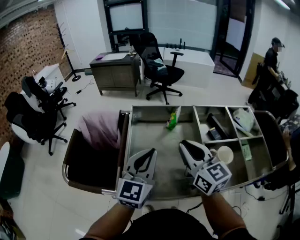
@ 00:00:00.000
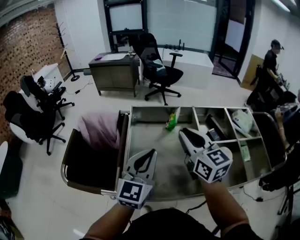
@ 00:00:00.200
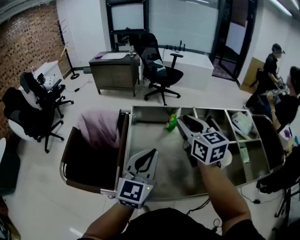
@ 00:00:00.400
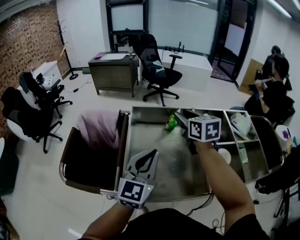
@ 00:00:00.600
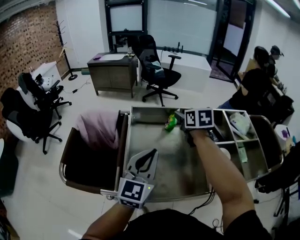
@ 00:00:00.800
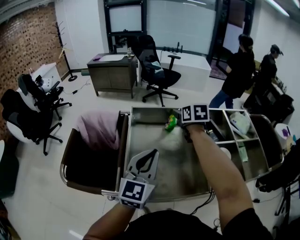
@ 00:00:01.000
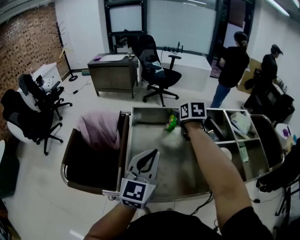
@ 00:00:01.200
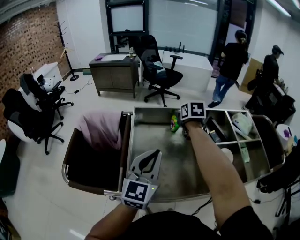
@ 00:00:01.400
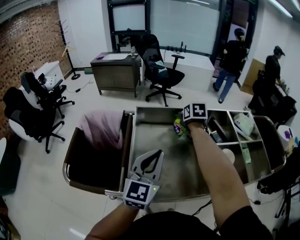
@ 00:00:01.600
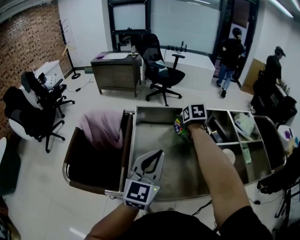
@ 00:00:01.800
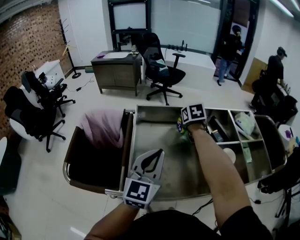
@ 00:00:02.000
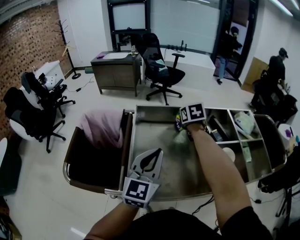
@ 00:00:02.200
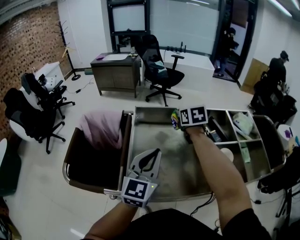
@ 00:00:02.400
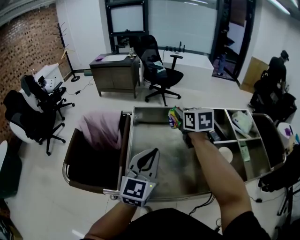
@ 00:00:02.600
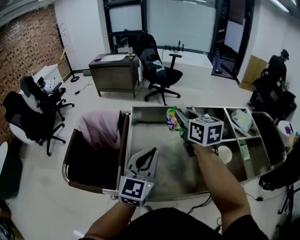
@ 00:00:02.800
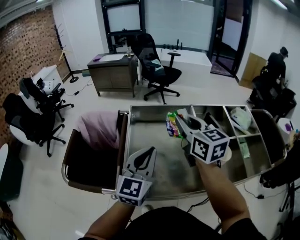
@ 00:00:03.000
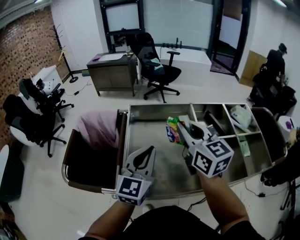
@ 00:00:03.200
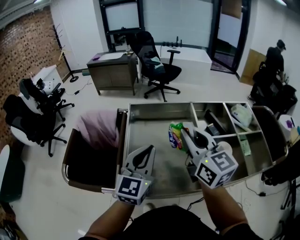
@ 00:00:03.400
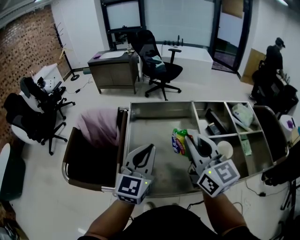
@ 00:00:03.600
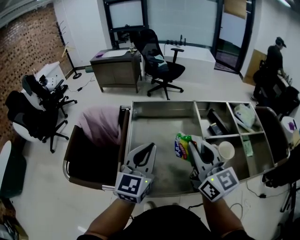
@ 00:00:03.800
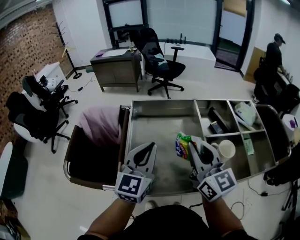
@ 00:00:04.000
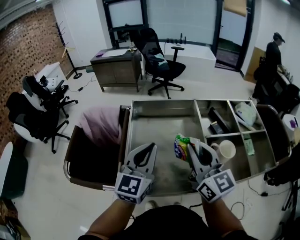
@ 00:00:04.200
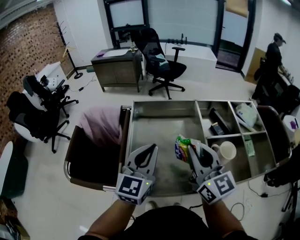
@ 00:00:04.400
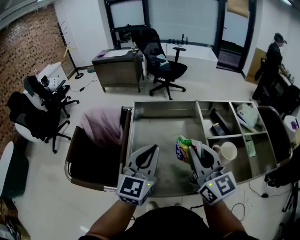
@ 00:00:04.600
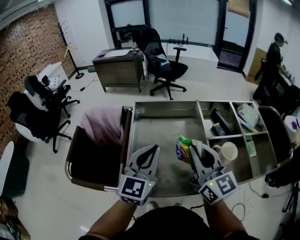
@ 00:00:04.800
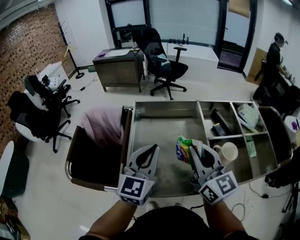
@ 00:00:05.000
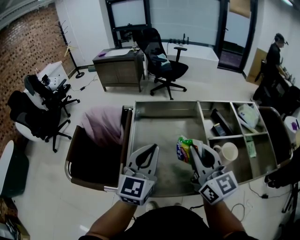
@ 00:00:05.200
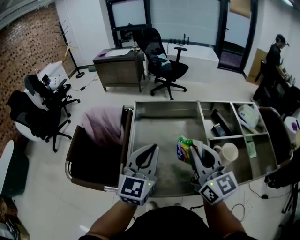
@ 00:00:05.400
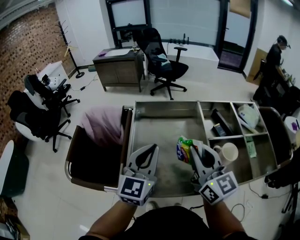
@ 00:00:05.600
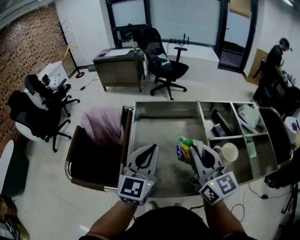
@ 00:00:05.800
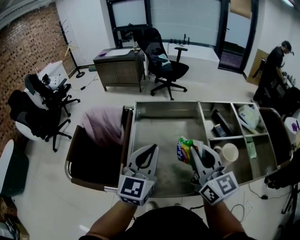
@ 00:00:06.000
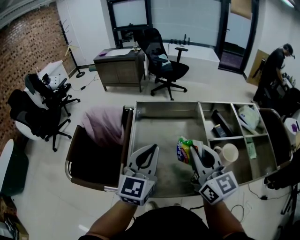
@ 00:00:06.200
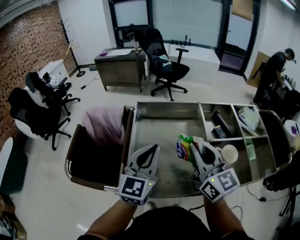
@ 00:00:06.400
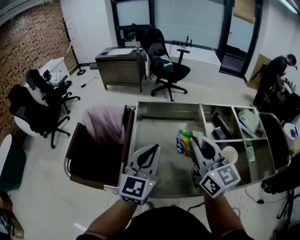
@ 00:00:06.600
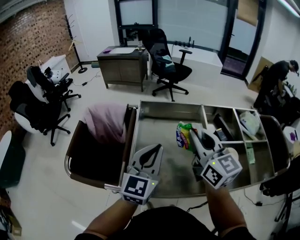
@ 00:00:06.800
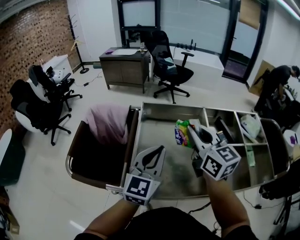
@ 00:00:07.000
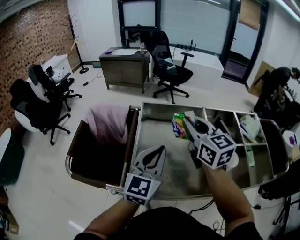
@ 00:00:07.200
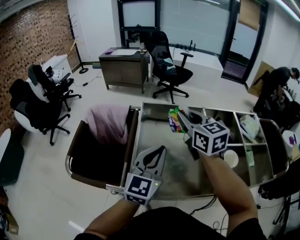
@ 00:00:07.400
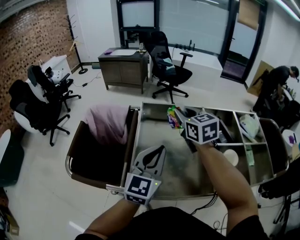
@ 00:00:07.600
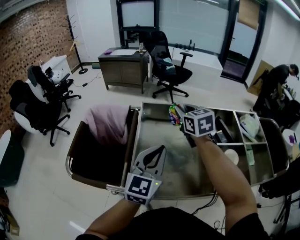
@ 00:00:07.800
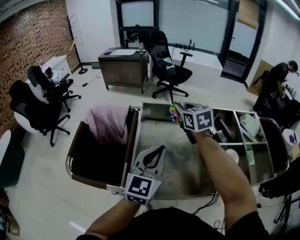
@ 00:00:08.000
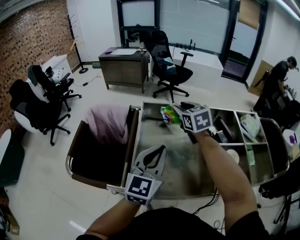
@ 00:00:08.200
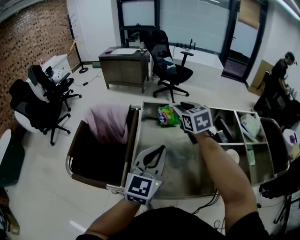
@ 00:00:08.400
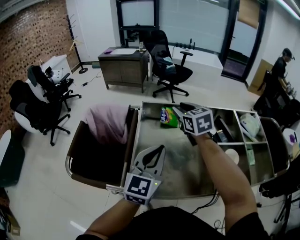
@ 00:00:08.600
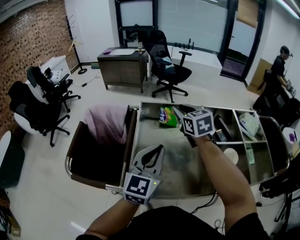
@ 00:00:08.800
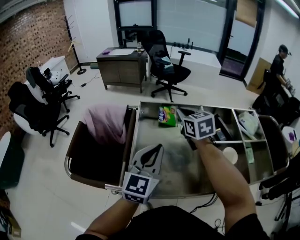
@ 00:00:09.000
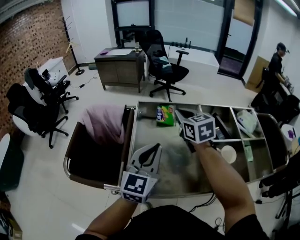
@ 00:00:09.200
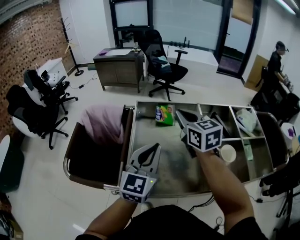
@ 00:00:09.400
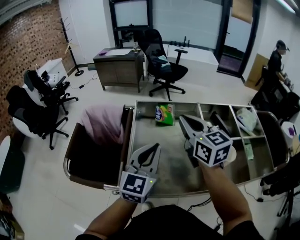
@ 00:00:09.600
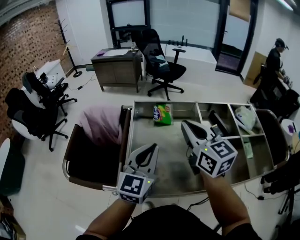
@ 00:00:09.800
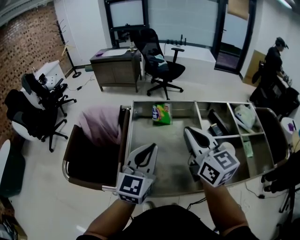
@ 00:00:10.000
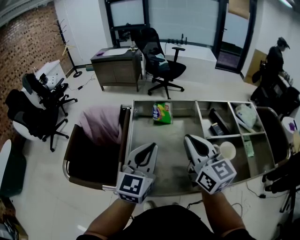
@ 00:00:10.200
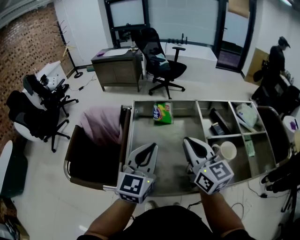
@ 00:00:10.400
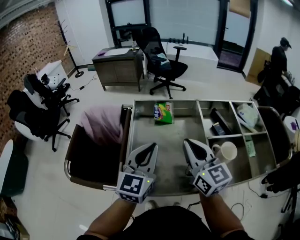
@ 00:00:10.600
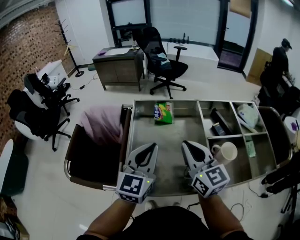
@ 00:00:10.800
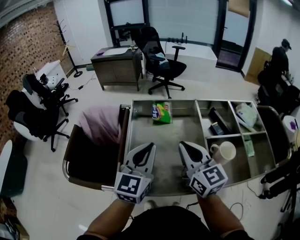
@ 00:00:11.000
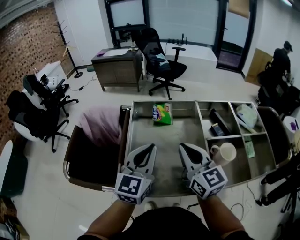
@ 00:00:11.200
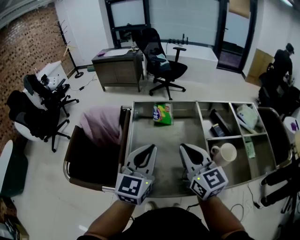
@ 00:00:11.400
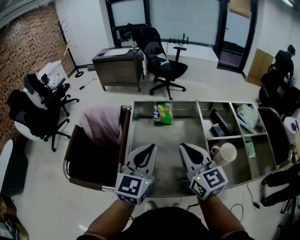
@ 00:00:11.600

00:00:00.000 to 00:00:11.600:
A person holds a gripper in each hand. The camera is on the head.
00:00:00.000 to 00:00:01.400: The right gripper heads forward, covering about 25 cm, points its fingers approximately 40 degrees further downward, and opens up.
00:00:01.400 to 00:00:02.800: The right gripper goes roughly 15 cm upward and backward, swivels some 30 degrees, and closes up.
00:00:02.800 to 00:00:04.400: The right gripper travels backward by roughly 15 cm.
00:00:04.400 to 00:00:05.800: Neither gripper changes place.
00:00:05.800 to 00:00:07.200: The right gripper goes about 10 cm forward.
00:00:07.200 to 00:00:08.800: The right gripper goes roughly 10 cm forward and downward.
00:00:08.800 to 00:00:10.200: The right gripper heads backward, covering some 20 cm, swivels about 20 degrees, and closes.
00:00:10.200 to 00:00:11.600: The grippers stay close to where they were, moving slightly.

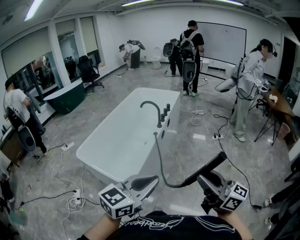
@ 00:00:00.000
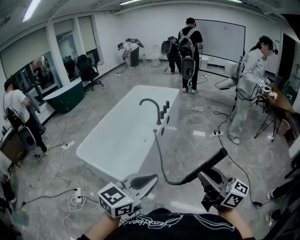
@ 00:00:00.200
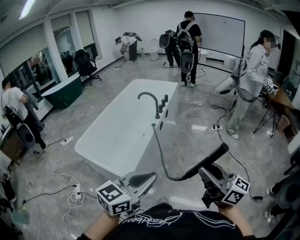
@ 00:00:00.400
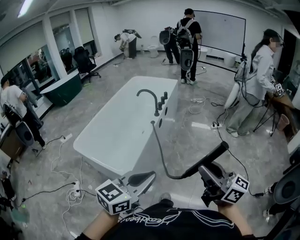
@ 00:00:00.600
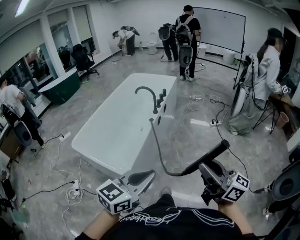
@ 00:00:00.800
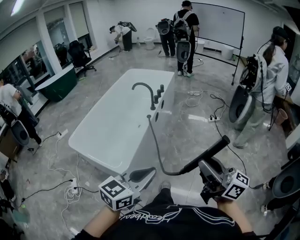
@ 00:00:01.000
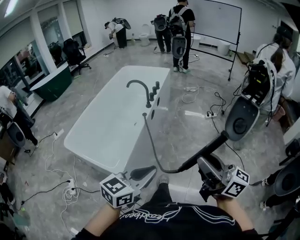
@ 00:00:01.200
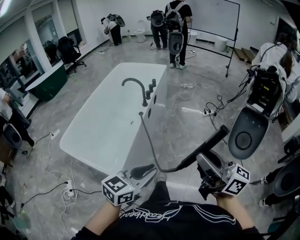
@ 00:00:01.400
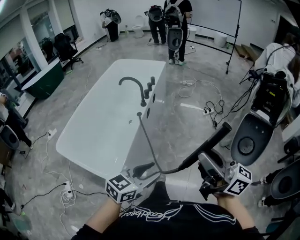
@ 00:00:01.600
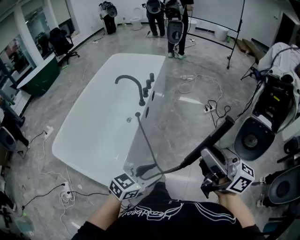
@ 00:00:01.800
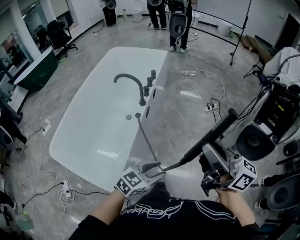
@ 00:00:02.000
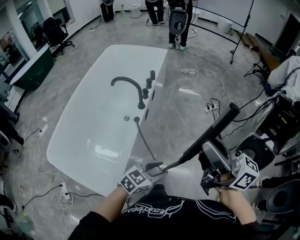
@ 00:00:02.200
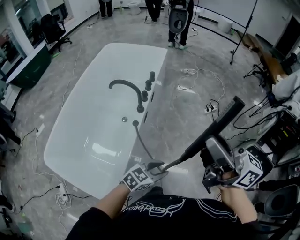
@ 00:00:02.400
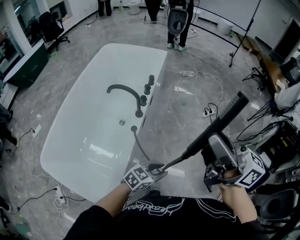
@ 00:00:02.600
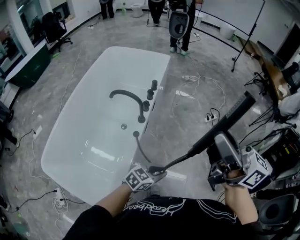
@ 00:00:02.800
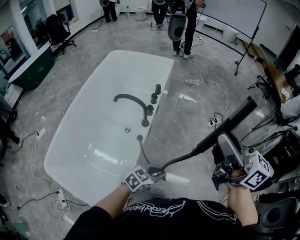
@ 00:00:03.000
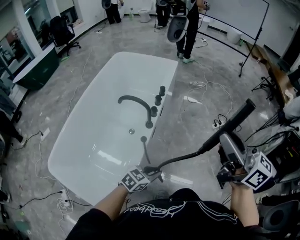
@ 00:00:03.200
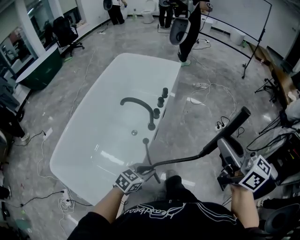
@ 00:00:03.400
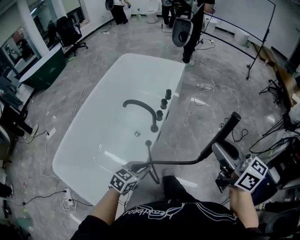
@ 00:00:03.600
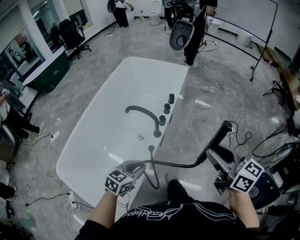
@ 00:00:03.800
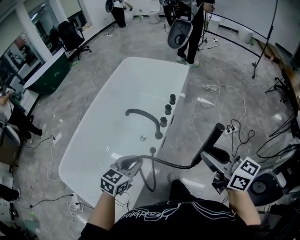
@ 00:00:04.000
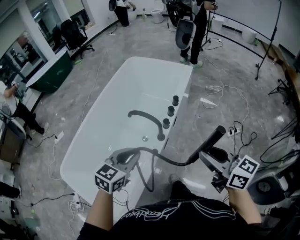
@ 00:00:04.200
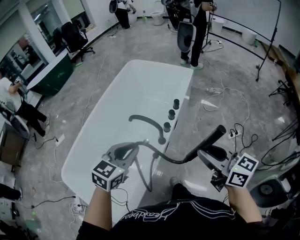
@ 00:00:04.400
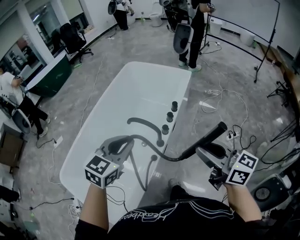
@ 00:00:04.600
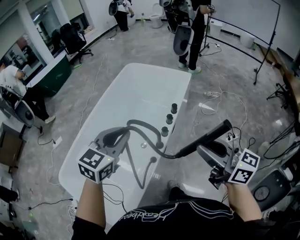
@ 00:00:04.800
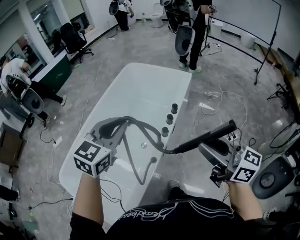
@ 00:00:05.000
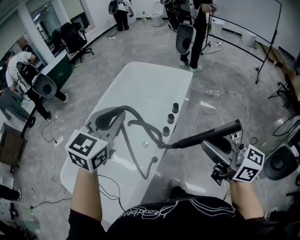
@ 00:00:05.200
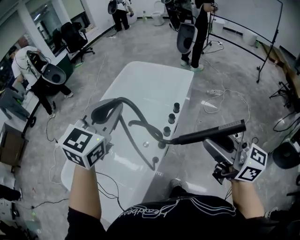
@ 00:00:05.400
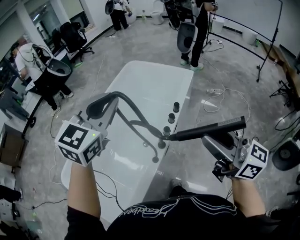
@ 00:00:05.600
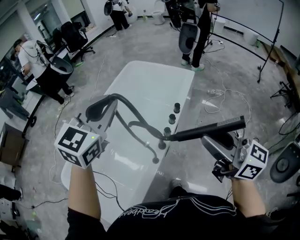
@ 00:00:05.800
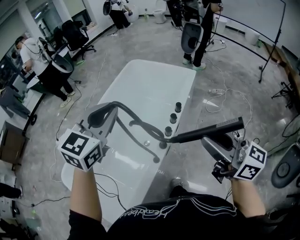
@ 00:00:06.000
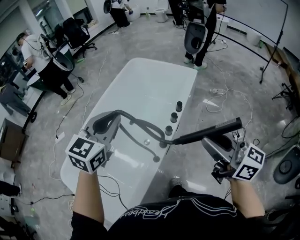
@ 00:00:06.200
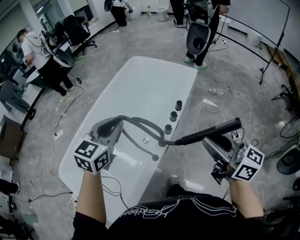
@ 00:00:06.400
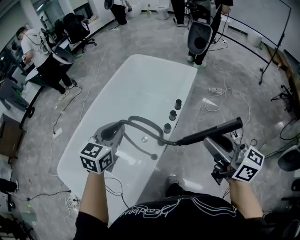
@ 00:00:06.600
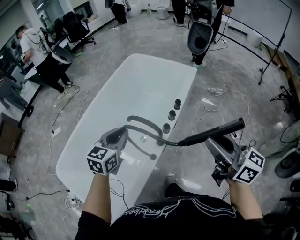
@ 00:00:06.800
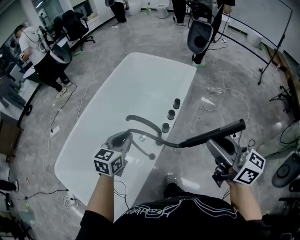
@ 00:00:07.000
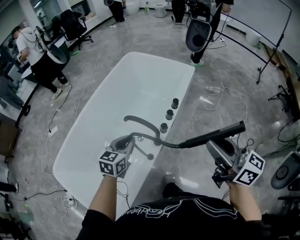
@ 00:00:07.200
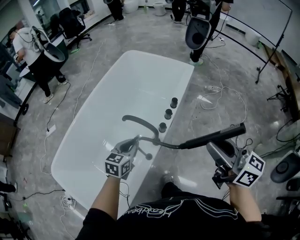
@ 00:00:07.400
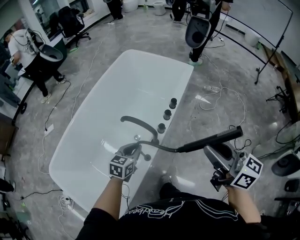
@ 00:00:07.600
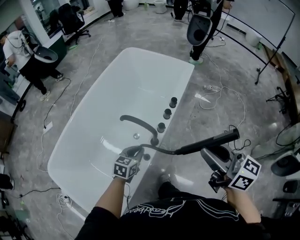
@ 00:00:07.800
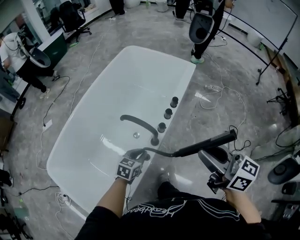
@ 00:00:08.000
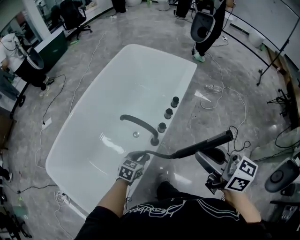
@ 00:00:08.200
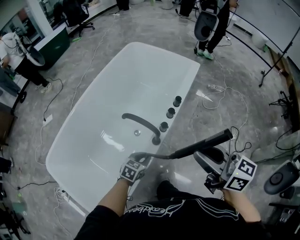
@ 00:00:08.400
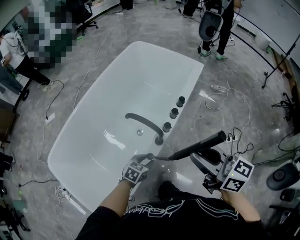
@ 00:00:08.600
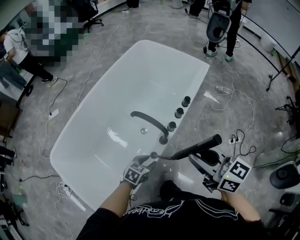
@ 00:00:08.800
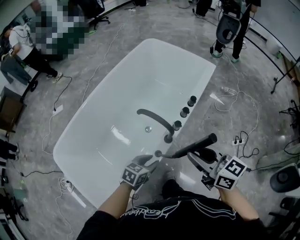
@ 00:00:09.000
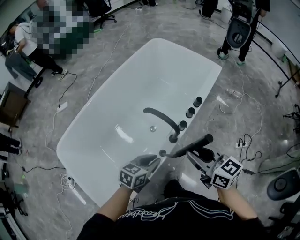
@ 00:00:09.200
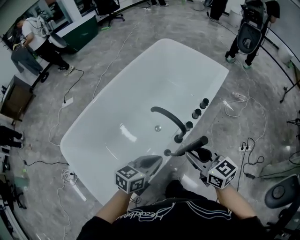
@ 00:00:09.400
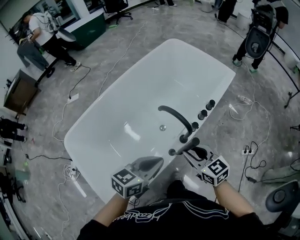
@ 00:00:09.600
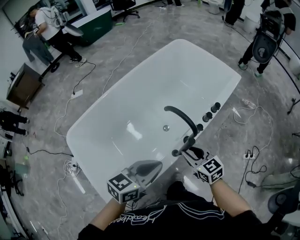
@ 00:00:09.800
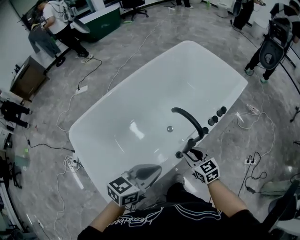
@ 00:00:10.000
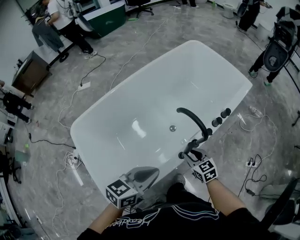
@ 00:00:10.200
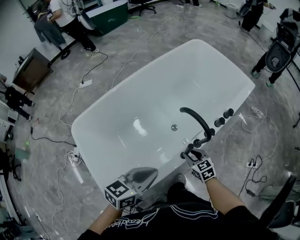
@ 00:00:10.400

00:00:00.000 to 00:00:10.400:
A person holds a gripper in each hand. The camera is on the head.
00:00:00.000 to 00:00:01.400: The right gripper heads forward, covering roughly 10 cm, while the left gripper is displaced downward and forward by some 15 cm.
00:00:01.400 to 00:00:03.000: The left gripper shifts approximately 40 cm forward and downward, swivels approximately 30 degrees, and opens and closes again. The right gripper moves forward, some 40 cm.
00:00:03.000 to 00:00:04.400: The left gripper ends up some 35 cm from where it was, and turns by approximately 40 degrees; the right gripper is displaced downward by roughly 15 cm, and changes its angle by roughly 30 degrees.
00:00:04.400 to 00:00:06.000: The right gripper moves upward and forward, approximately 10 cm. The left gripper travels upward and forward by roughly 20 cm.
00:00:06.000 to 00:00:07.400: The left gripper shifts roughly 30 cm downward, and swivels some 30 degrees; the right gripper shifts by about 5 cm.
00:00:07.400 to 00:00:09.000: The left gripper shifts about 15 cm downward and backward, and opens; the right gripper is displaced downward and to the left by about 15 cm, and changes its angle by some 20 degrees.
00:00:09.000 to 00:00:10.400: The right gripper goes some 30 cm downward and to the left, and changes its angle by roughly 30 degrees. Meanwhile the left gripper heads upward and to the left, covering some 20 cm, changes its angle by some 20 degrees, and closes up.

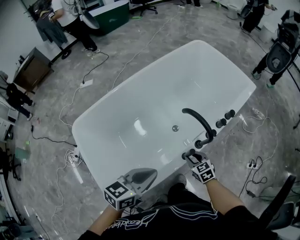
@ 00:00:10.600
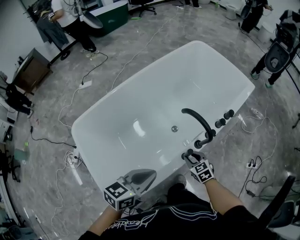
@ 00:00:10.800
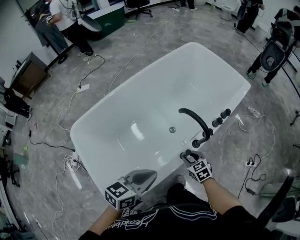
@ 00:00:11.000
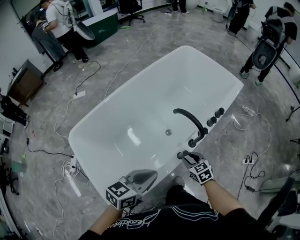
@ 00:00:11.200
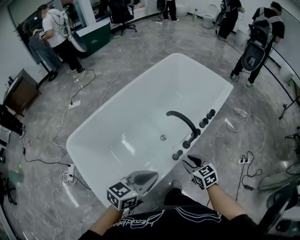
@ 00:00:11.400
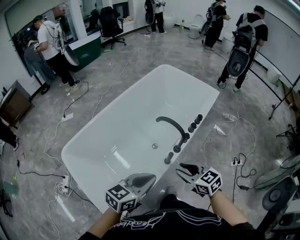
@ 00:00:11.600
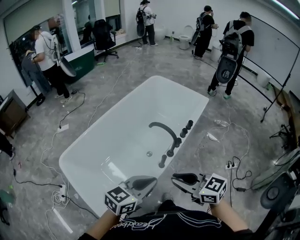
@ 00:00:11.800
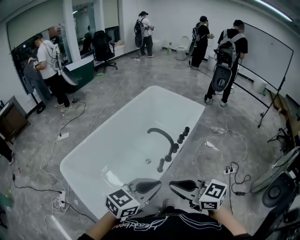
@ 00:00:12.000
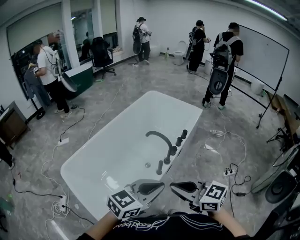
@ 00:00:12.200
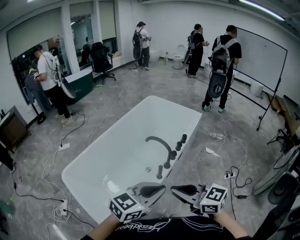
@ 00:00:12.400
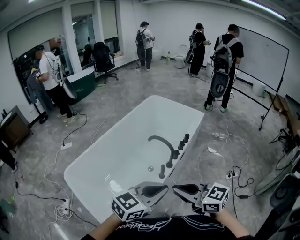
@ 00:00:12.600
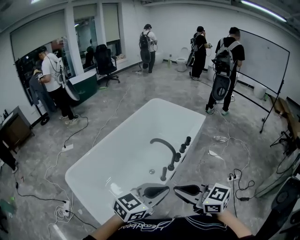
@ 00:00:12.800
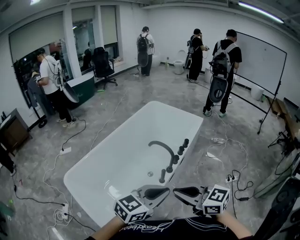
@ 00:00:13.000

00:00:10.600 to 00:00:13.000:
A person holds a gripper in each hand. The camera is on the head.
00:00:10.600 to 00:00:11.800: The right gripper shifts about 35 cm upward and backward, and turns by some 30 degrees, while the left gripper travels upward, to the right and backward by roughly 15 cm, and swivels roughly 20 degrees.
00:00:11.800 to 00:00:13.000: The right gripper travels upward and backward by roughly 10 cm; the left gripper is displaced upward by some 5 cm.
